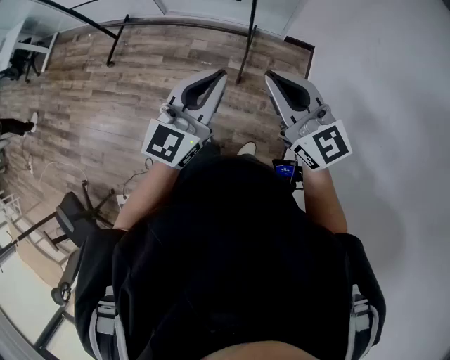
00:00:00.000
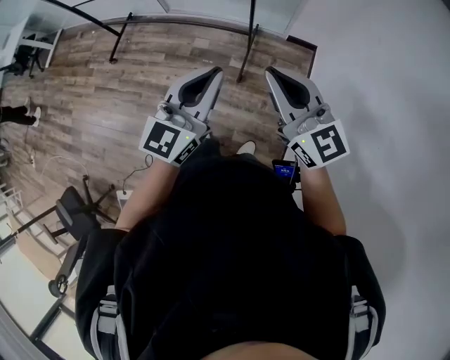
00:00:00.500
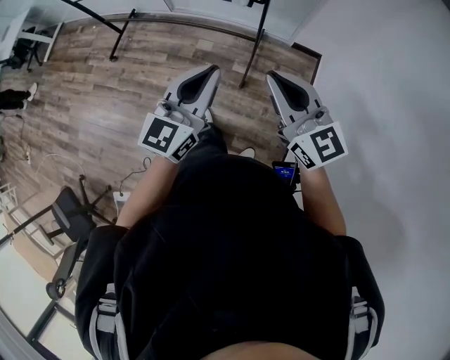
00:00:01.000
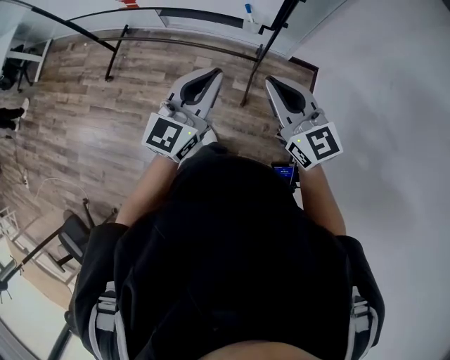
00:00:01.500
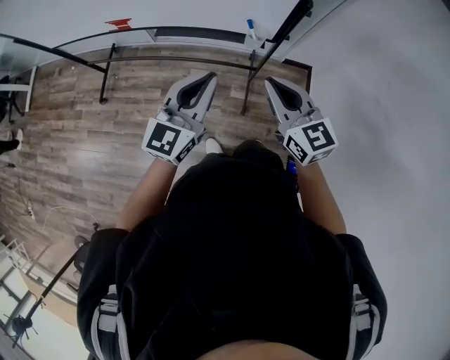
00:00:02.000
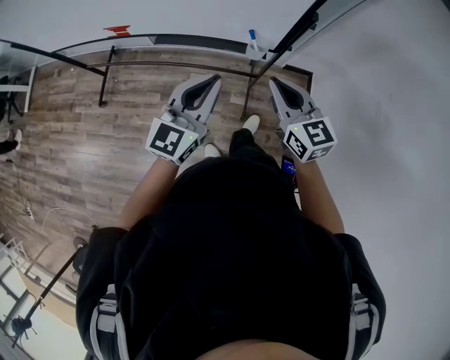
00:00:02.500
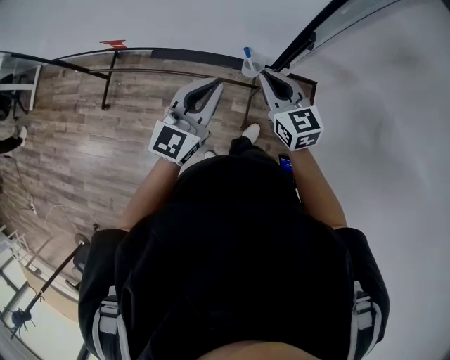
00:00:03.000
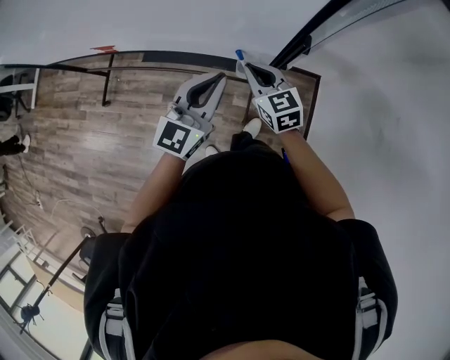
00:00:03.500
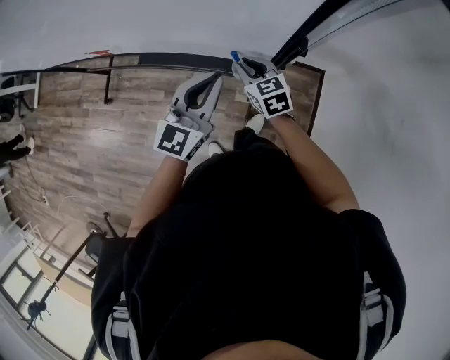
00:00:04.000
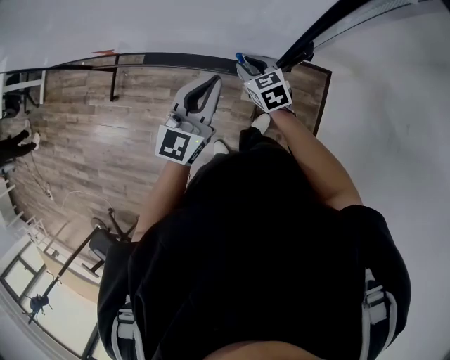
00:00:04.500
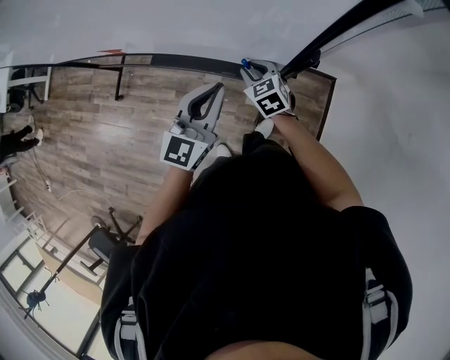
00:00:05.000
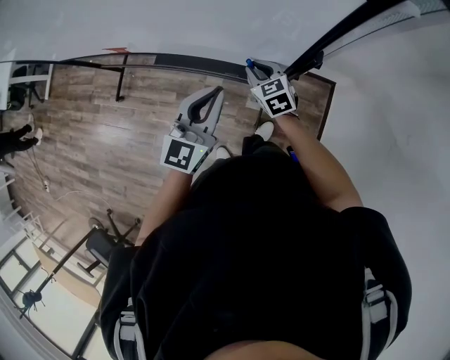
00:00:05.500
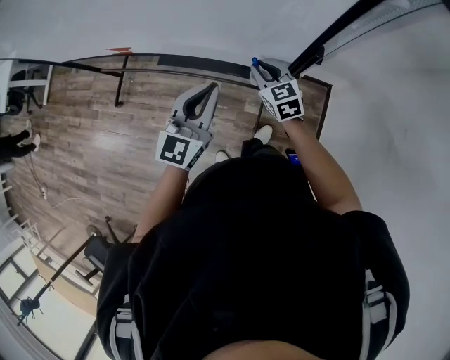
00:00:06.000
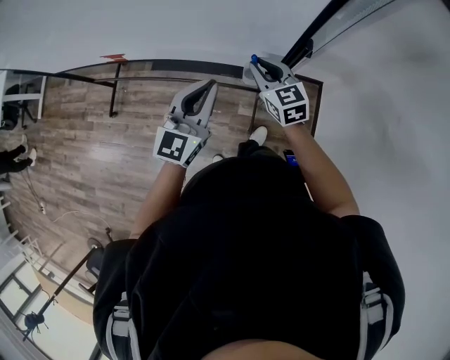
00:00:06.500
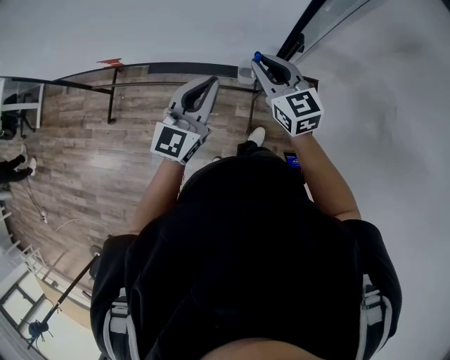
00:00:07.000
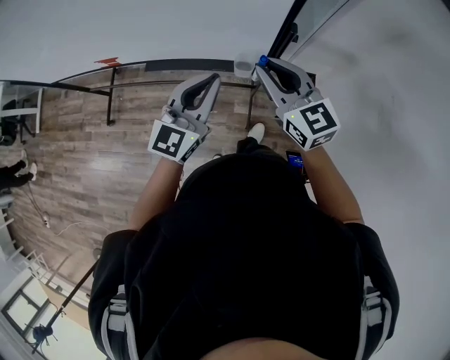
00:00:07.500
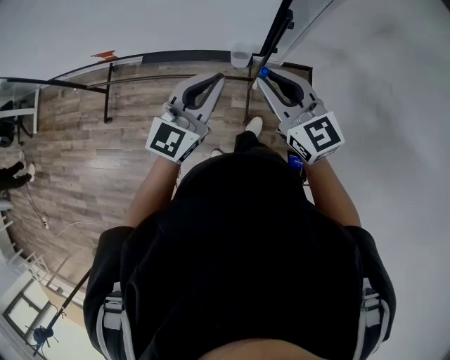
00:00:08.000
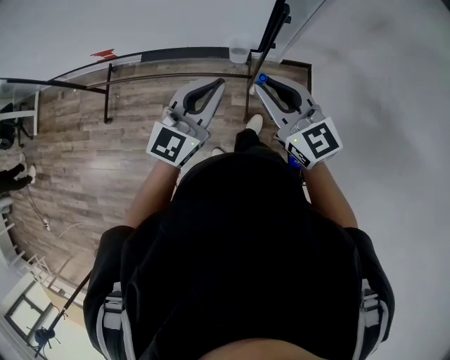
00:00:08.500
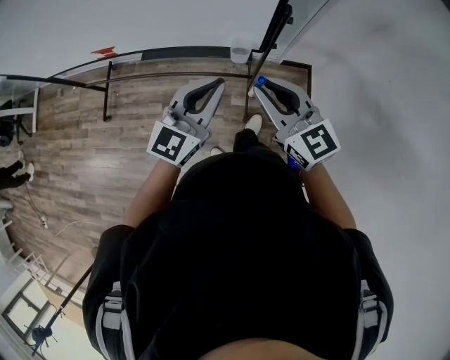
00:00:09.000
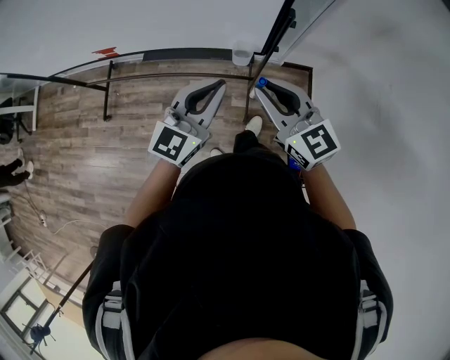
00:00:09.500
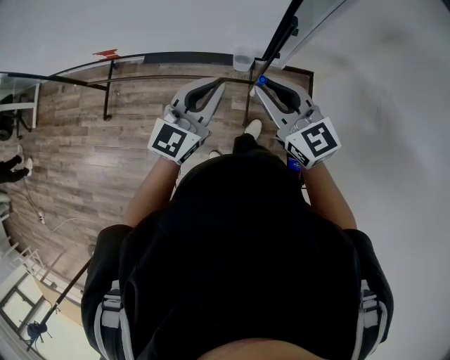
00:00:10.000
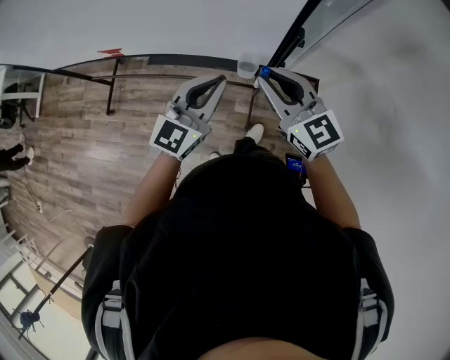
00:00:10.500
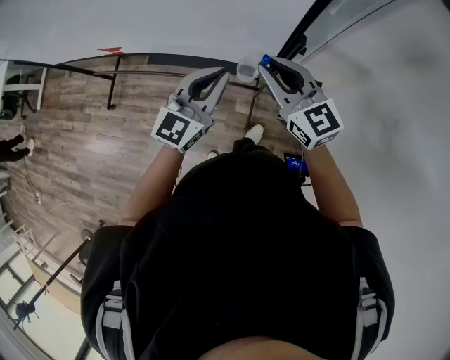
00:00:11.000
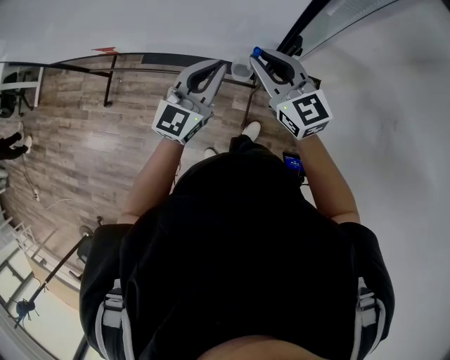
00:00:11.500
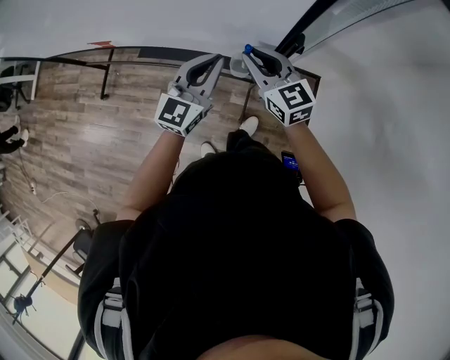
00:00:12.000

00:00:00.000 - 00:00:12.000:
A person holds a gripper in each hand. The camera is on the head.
00:00:00.000 - 00:00:02.000: The two grippers go approximately 30 cm forward and to the left.
00:00:02.000 - 00:00:04.000: The left gripper moves forward and to the right, about 25 cm. Meanwhile the right gripper goes some 35 cm forward and downward, and turns by about 20 degrees.
00:00:04.000 - 00:00:06.000: The left gripper shifts some 5 cm to the left.
00:00:06.000 - 00:00:08.000: The left gripper goes roughly 10 cm backward; the right gripper moves upward and backward, roughly 25 cm, and turns by approximately 20 degrees.
00:00:08.000 - 00:00:10.000: The grippers make only small movements.
00:00:10.000 - 00:00:12.000: Both grippers move forward and downward, roughly 15 cm.

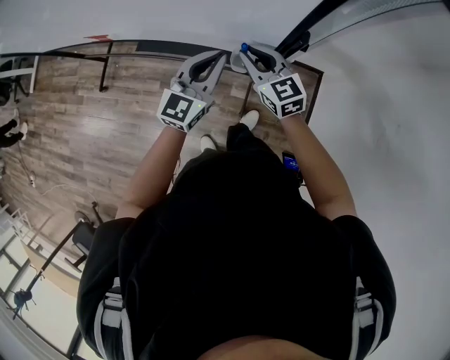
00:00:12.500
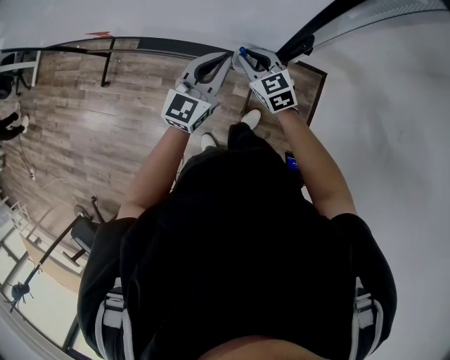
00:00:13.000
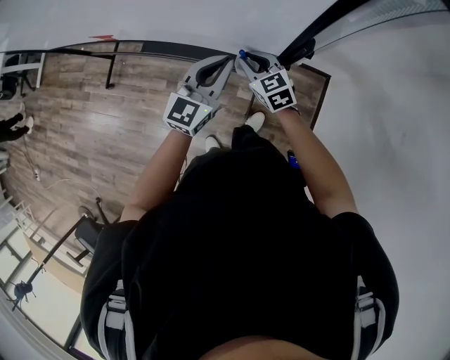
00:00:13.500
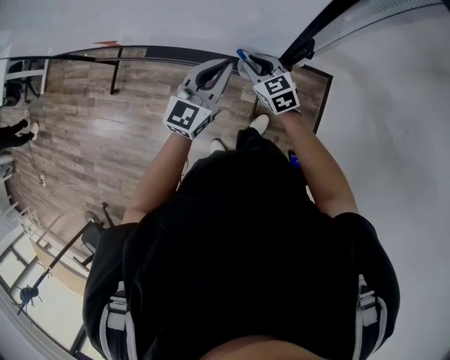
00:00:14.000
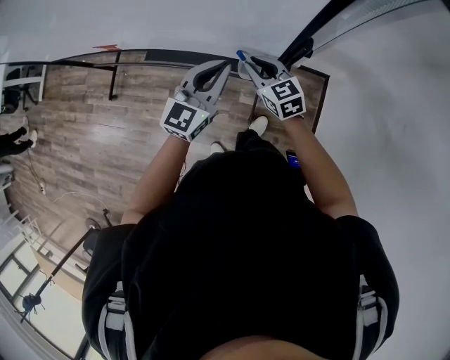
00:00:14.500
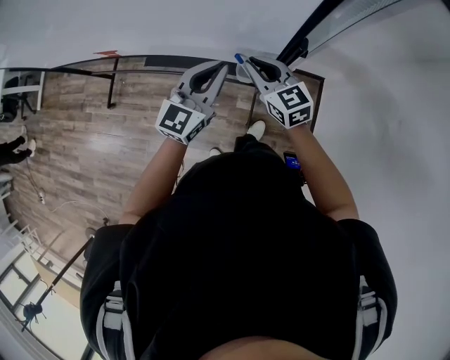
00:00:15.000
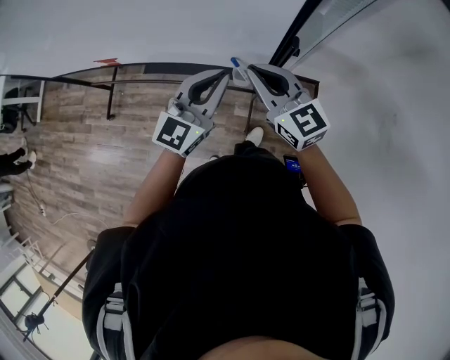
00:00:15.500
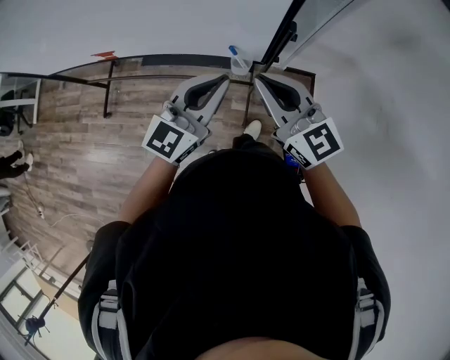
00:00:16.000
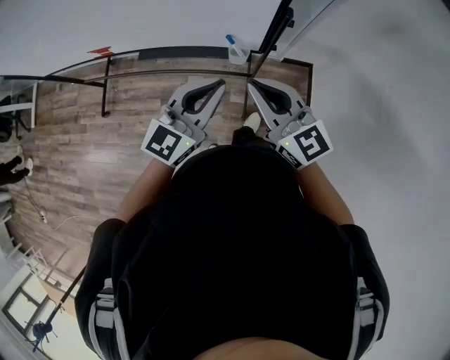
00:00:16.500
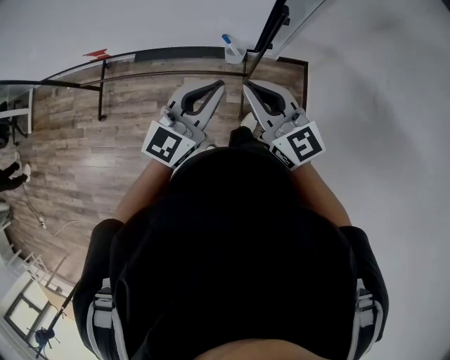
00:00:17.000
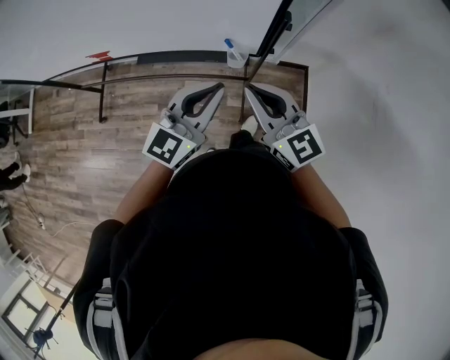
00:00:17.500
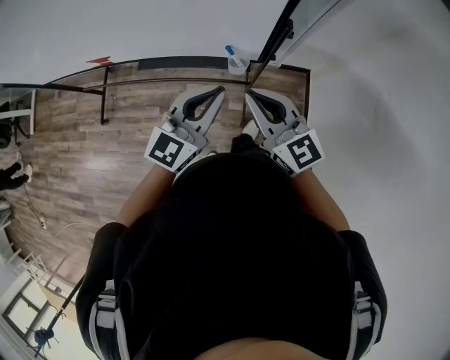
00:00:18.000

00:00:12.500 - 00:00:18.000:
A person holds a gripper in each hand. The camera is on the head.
00:00:14.500 - 00:00:16.000: The left gripper moves upward and backward, some 15 cm. The right gripper moves upward and backward, roughly 25 cm, and swivels about 20 degrees.
00:00:16.000 - 00:00:18.000: The right gripper moves approximately 5 cm.

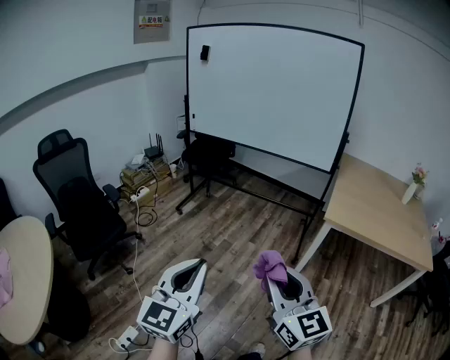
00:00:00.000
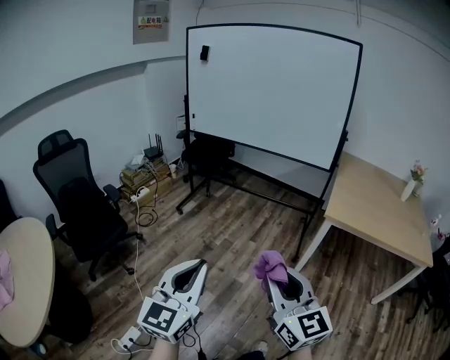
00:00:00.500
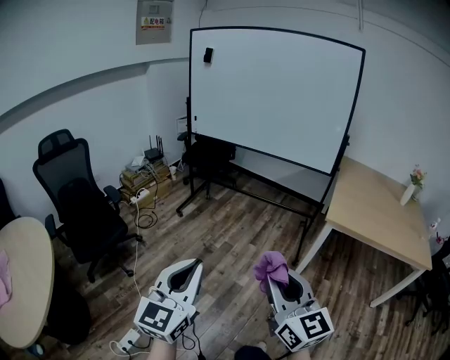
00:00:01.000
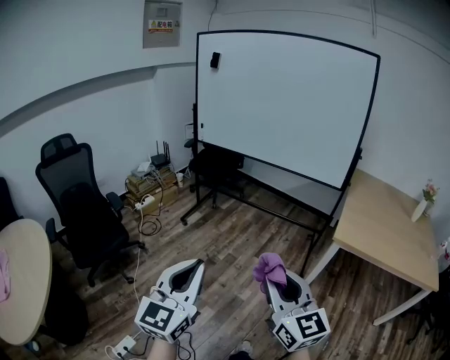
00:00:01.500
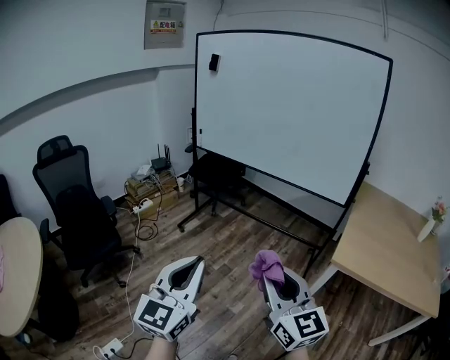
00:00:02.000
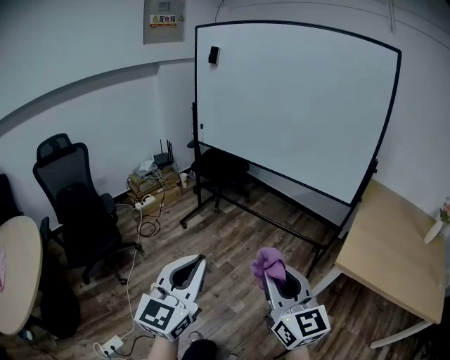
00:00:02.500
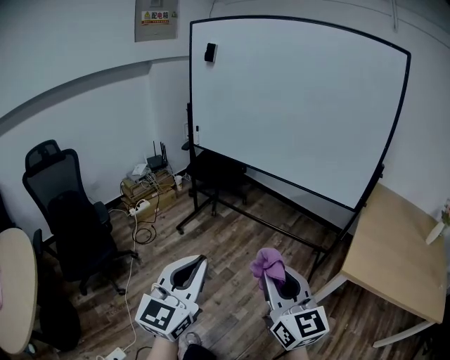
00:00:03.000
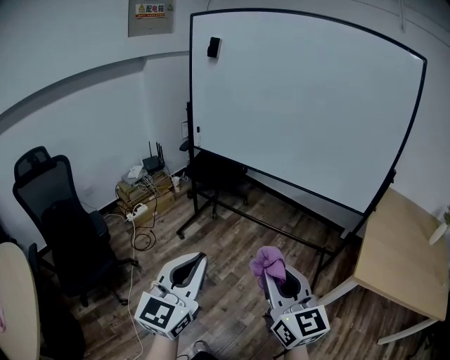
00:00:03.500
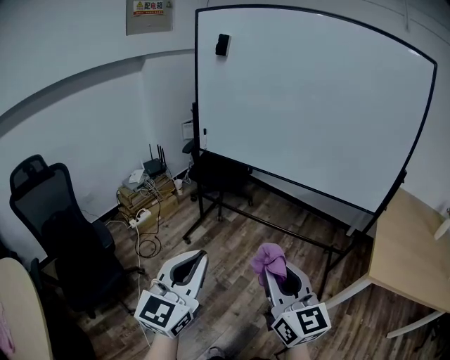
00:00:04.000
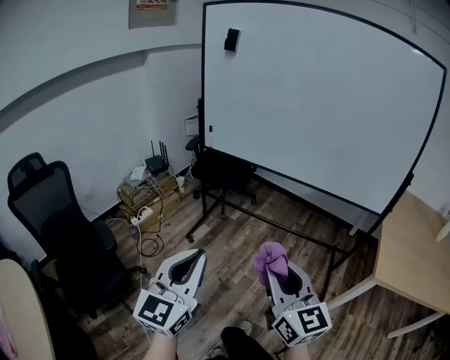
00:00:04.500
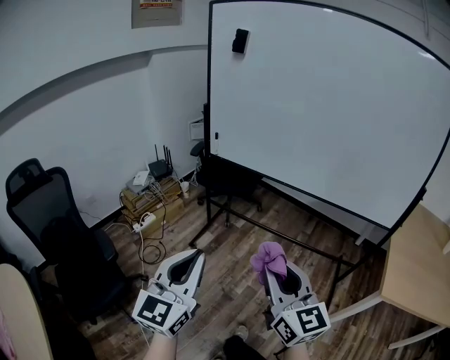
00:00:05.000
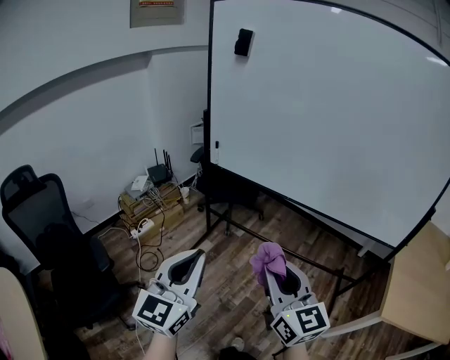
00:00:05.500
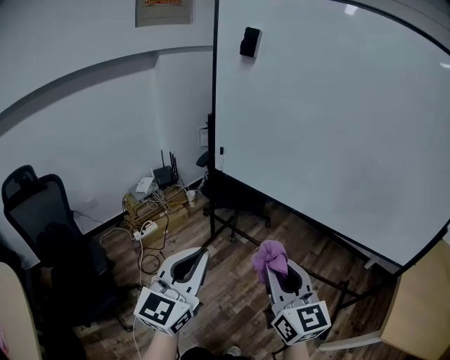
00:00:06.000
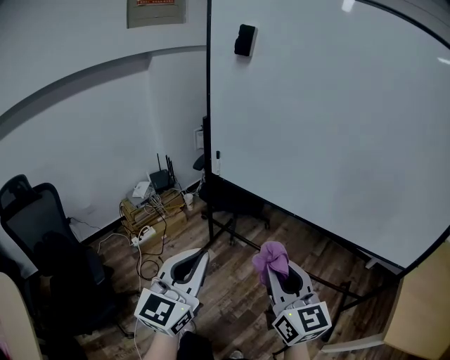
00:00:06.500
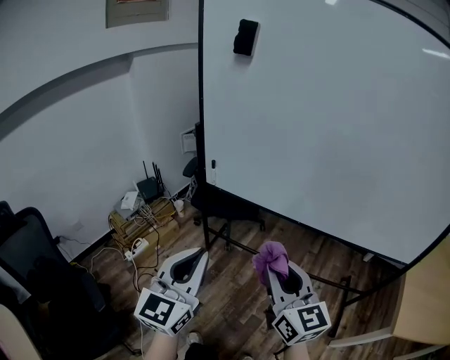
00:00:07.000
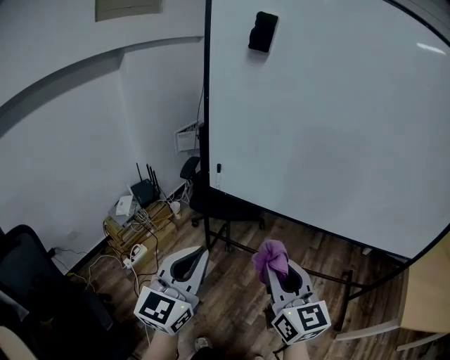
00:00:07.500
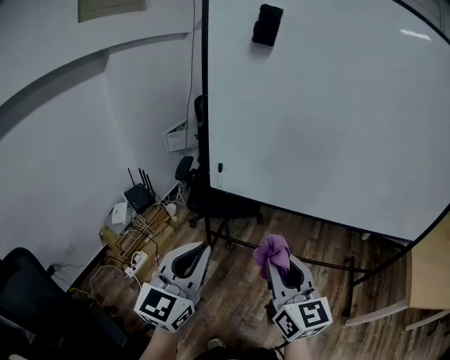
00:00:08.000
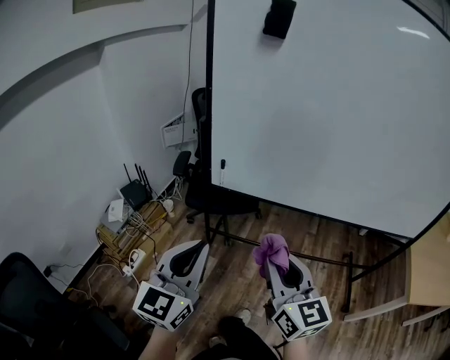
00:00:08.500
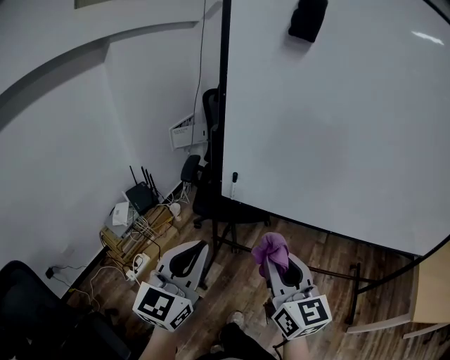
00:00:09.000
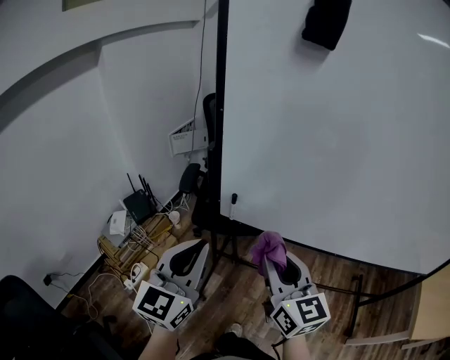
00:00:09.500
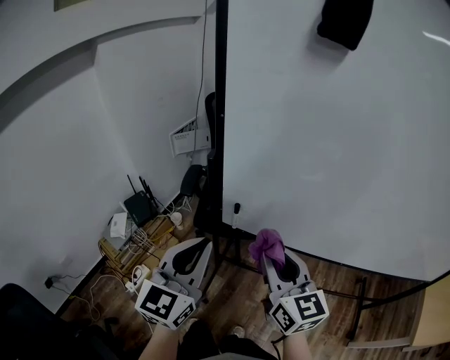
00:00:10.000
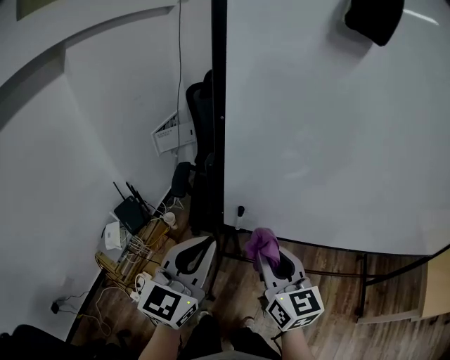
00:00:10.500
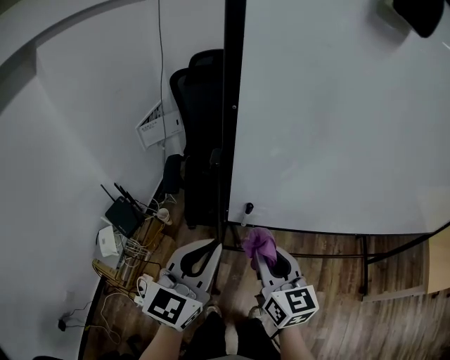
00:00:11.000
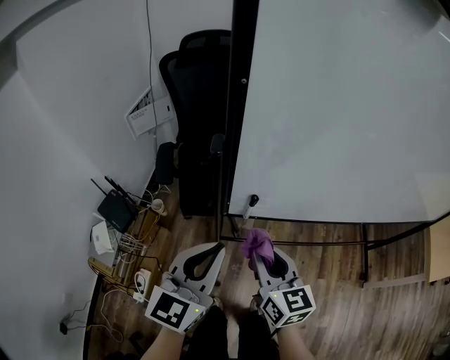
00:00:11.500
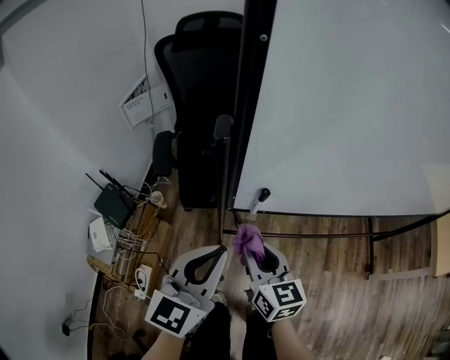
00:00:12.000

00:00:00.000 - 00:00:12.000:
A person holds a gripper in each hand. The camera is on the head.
00:00:00.000 - 00:00:02.000: The grippers both shift forward by about 20 cm.
00:00:02.000 - 00:00:04.000: Both grippers move forward and to the left, about 30 cm.
00:00:04.000 - 00:00:06.000: Both grippers travel together forward, roughly 25 cm.
00:00:06.000 - 00:00:08.000: Both grippers move forward and to the left, roughly 25 cm.
00:00:08.000 - 00:00:10.000: The two grippers go about 25 cm forward.
00:00:10.000 - 00:00:12.000: The left gripper goes roughly 15 cm downward and forward, and changes its angle by approximately 30 degrees, while the right gripper heads downward and to the left, covering about 25 cm, and turns by some 20 degrees.
